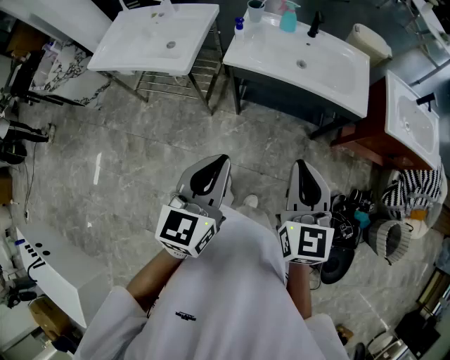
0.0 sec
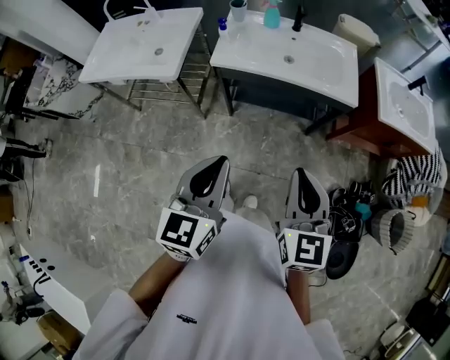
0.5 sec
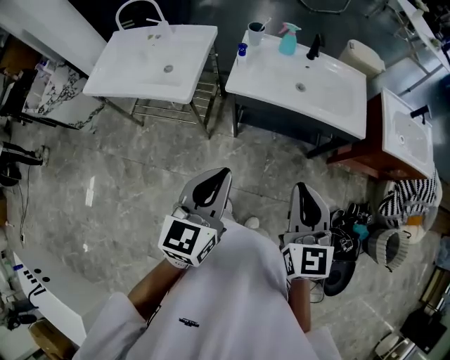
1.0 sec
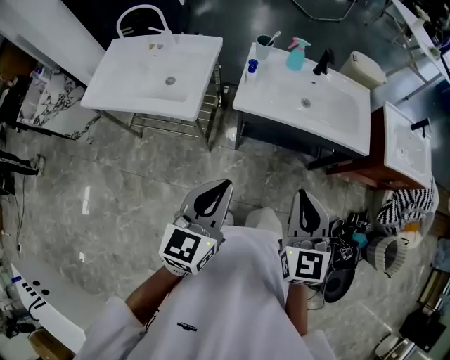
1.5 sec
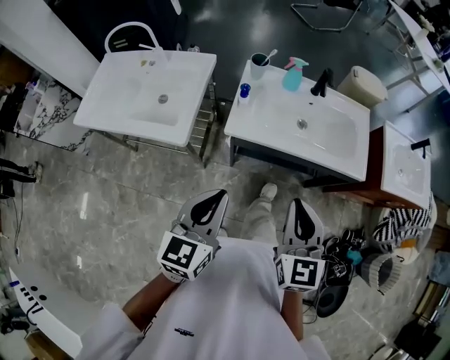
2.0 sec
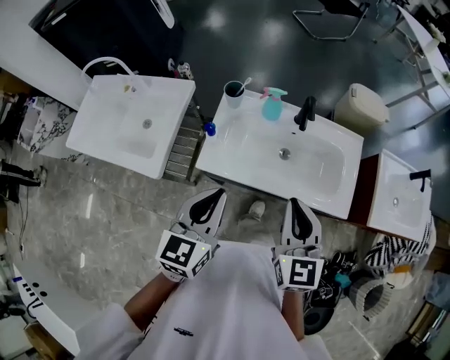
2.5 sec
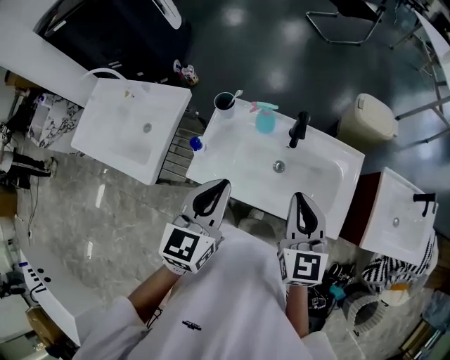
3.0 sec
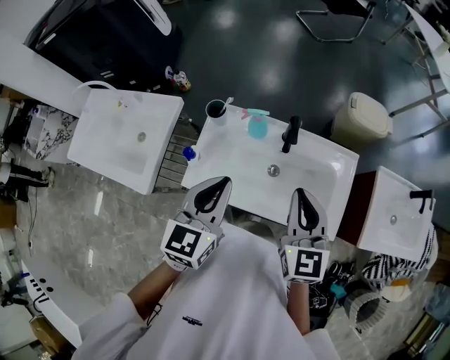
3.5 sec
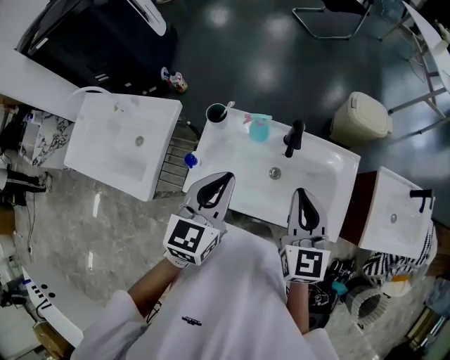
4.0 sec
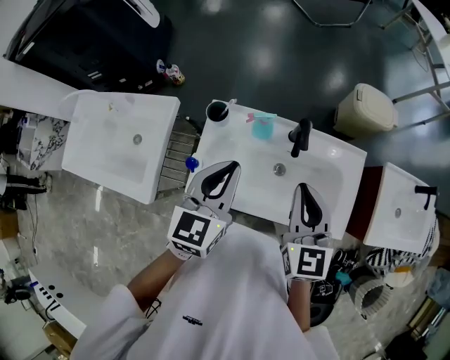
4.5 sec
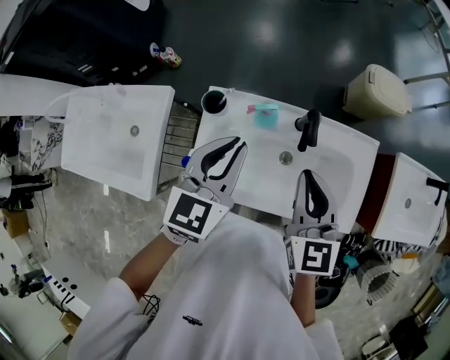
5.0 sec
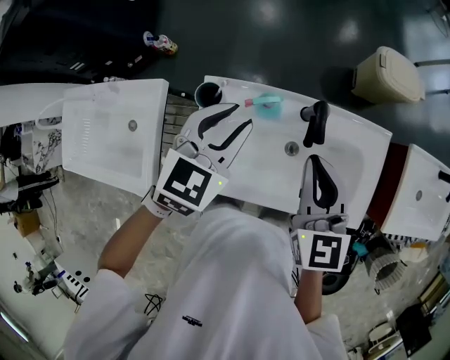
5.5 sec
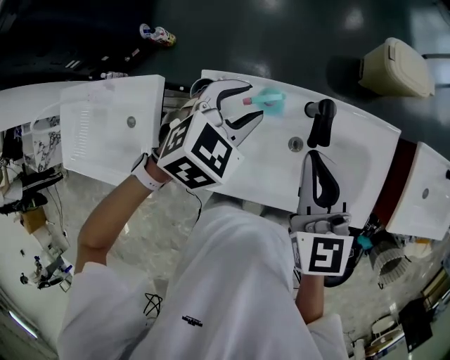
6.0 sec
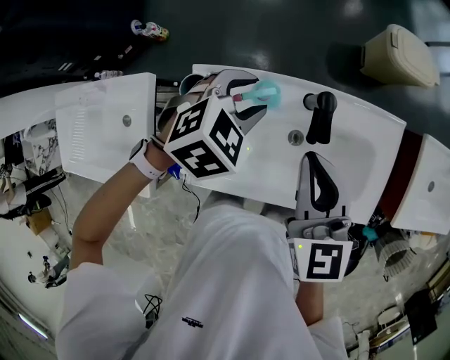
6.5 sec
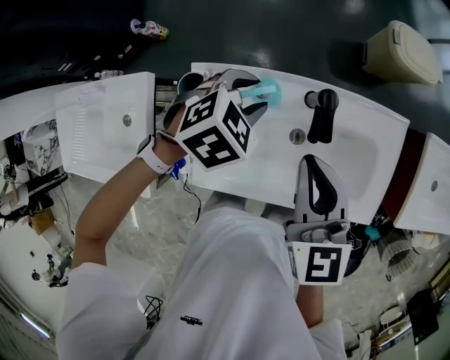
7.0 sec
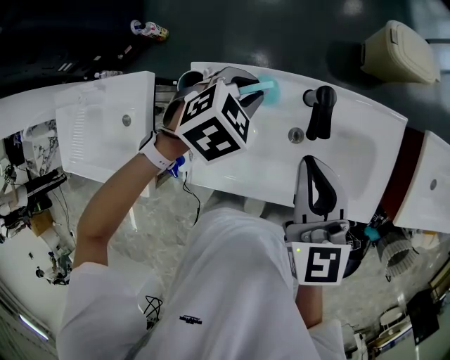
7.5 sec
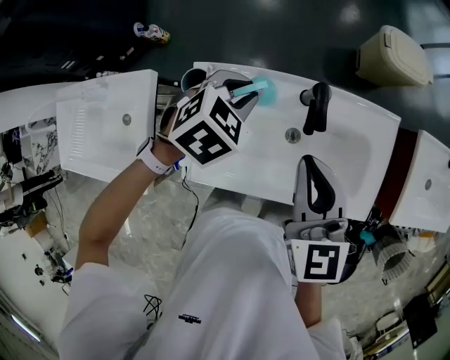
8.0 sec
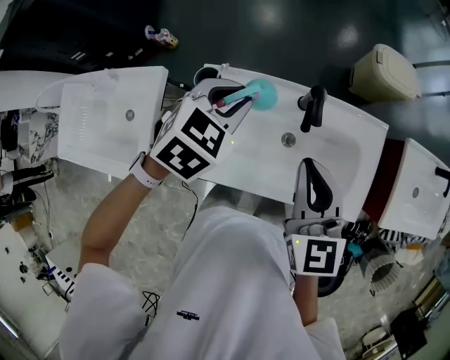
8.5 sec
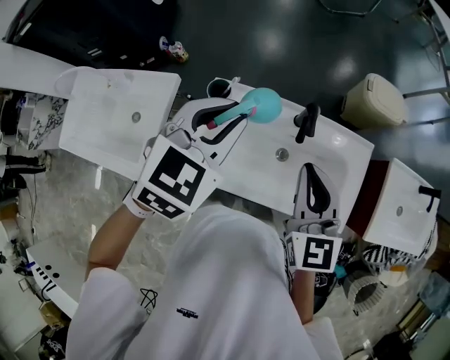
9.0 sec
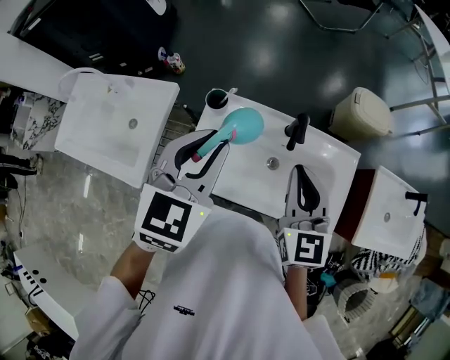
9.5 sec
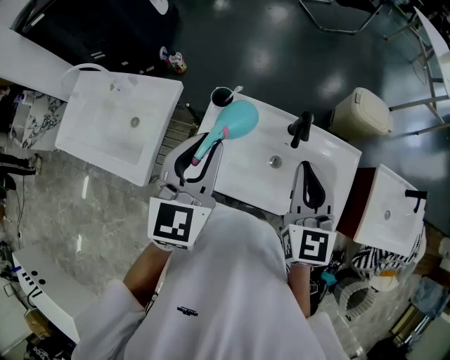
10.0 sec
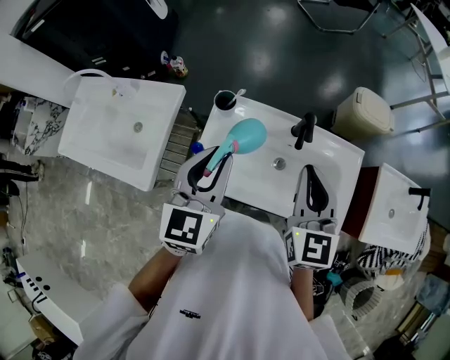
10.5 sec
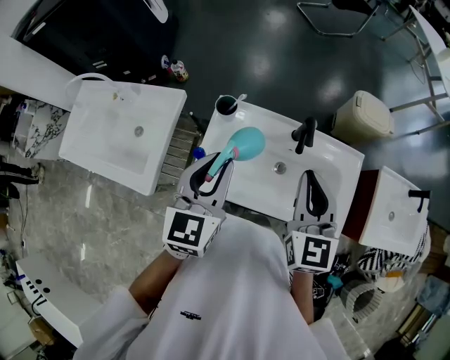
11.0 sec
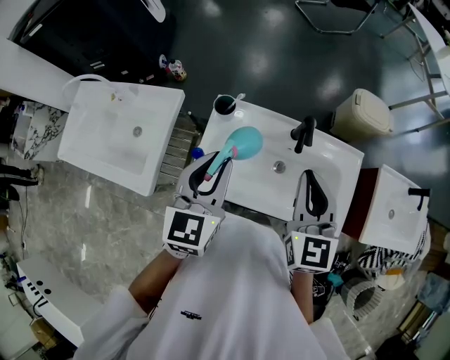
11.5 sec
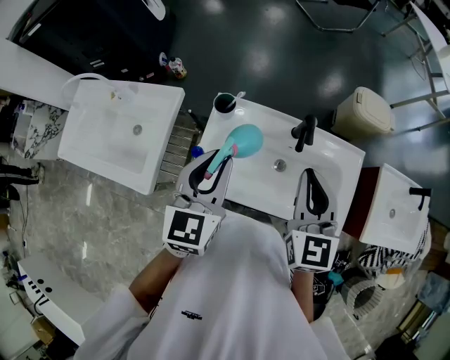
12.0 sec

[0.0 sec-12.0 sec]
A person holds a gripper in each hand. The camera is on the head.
0.0 sec to 2.0 sec: The two grippers go approximately 20 cm forward and to the left.
2.0 sec to 4.0 sec: Both grippers move forward and to the right, about 35 cm.
4.0 sec to 6.0 sec: The left gripper shifts about 25 cm forward and downward, tilts its fingers about 30 degrees downward, and opens up. Meanwhile the right gripper shifts about 15 cm forward, downward and to the left.
6.0 sec to 8.0 sec: The left gripper closes up.
8.0 sec to 10.0 sec: The left gripper heads upward and backward, covering some 30 cm, and tilts its fingers some 40 degrees upward. Meanwhile the right gripper moves upward and backward, roughly 10 cm.
10.0 sec to 12.0 sec: The grippers stay close to where they were, moving slightly.

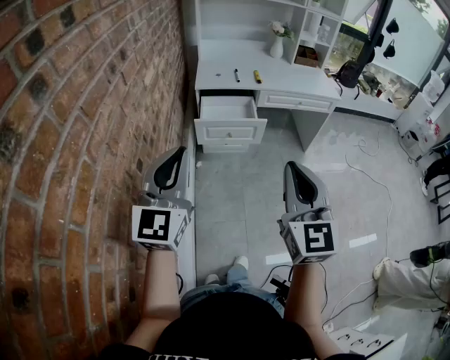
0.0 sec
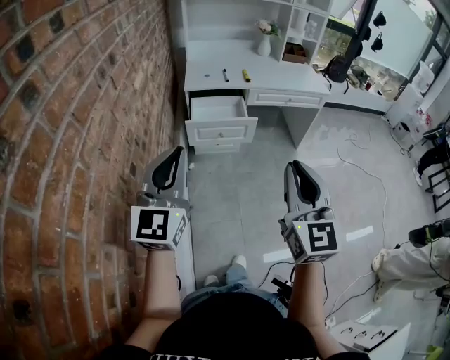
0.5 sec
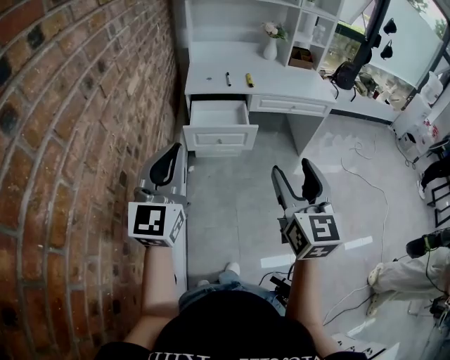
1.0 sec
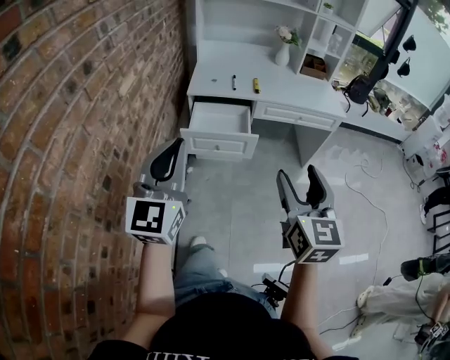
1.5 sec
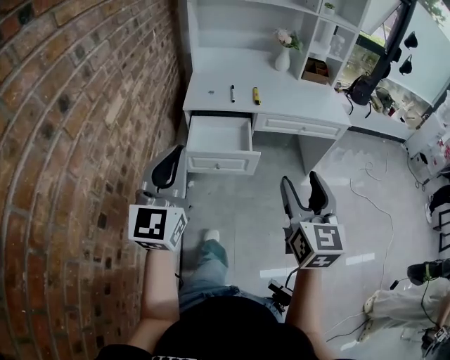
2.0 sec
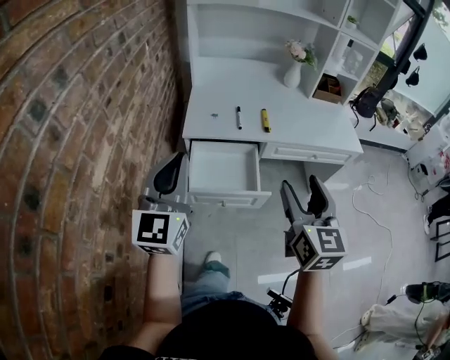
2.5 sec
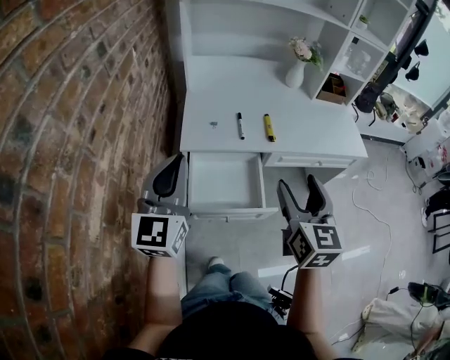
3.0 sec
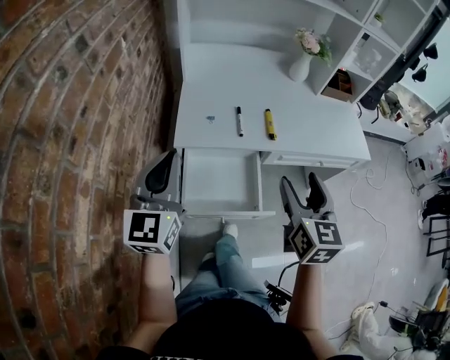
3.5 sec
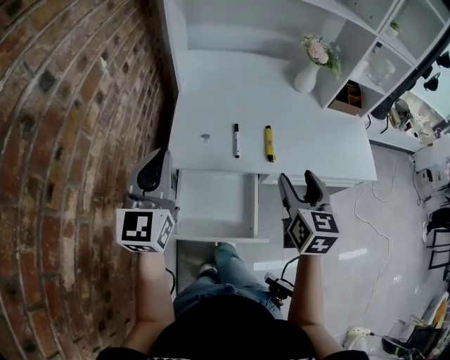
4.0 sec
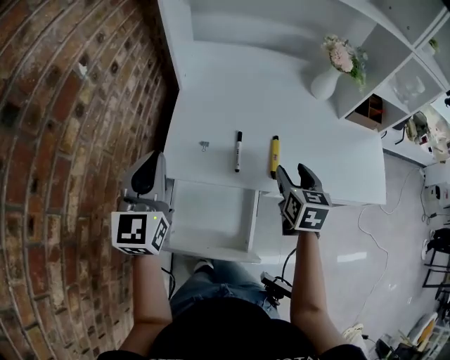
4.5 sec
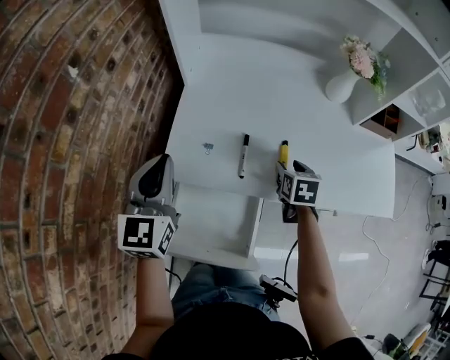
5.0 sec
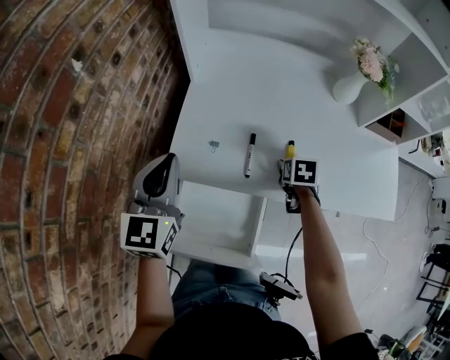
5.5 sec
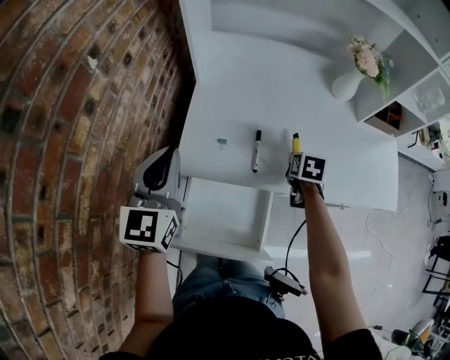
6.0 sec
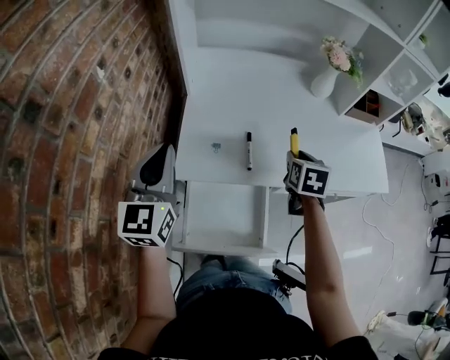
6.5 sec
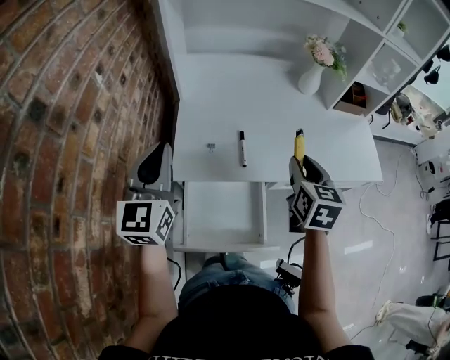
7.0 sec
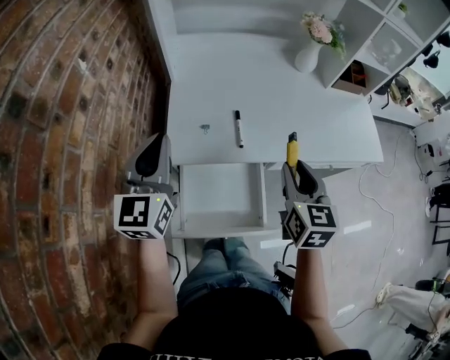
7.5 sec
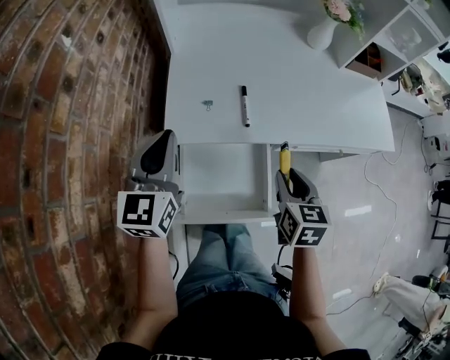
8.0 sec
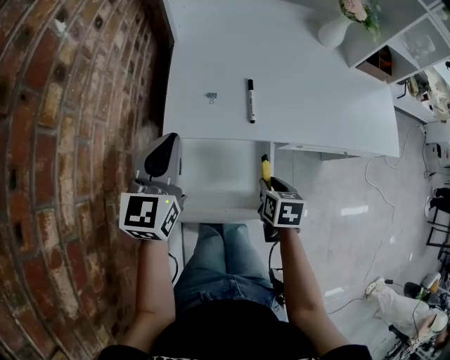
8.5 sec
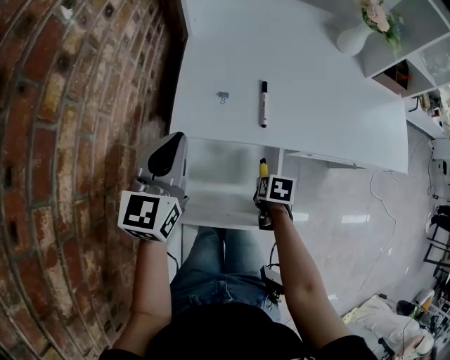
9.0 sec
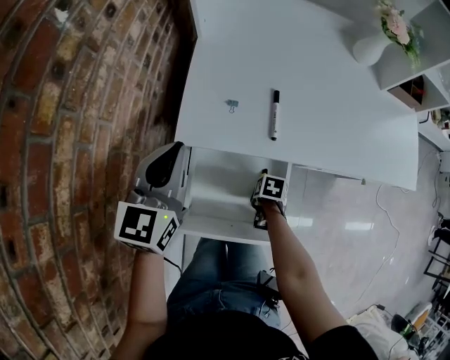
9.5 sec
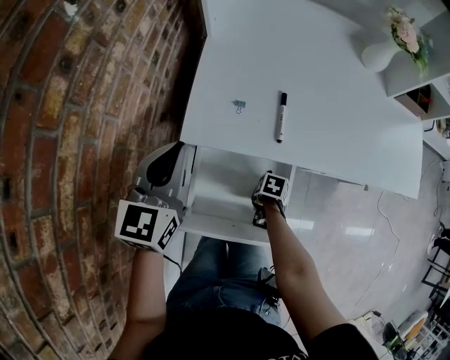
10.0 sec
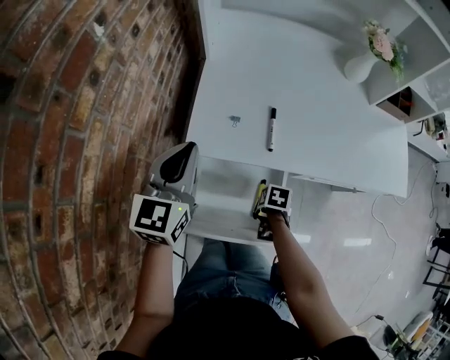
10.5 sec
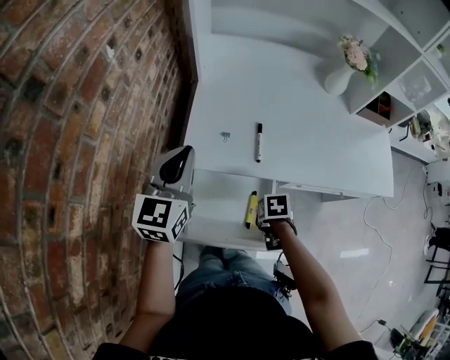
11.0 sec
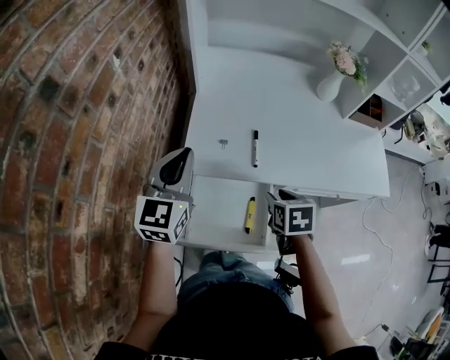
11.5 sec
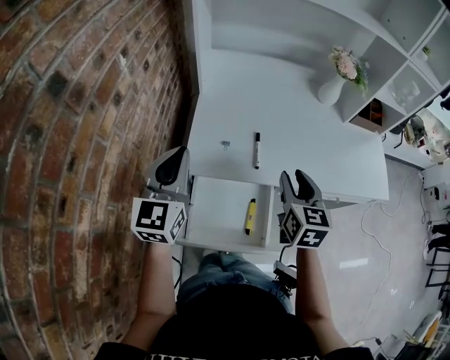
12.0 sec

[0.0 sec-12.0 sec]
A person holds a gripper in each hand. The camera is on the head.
0.0 sec to 2.0 sec: The right gripper moves forward and to the right, roughly 25 cm, and opens up. The left gripper goes some 20 cm forward.
2.0 sec to 4.0 sec: Both grippers are carried forward, some 50 cm.
4.0 sec to 6.0 sec: The right gripper heads downward and forward, covering approximately 30 cm, angles its fingers downward, by some 40 degrees, and closes its fingers. The left gripper shifts some 10 cm forward.
6.0 sec to 8.0 sec: The right gripper shifts approximately 25 cm backward. Meanwhile the left gripper ends up approximately 5 cm from where it was.
8.0 sec to 10.0 sec: The left gripper travels downward by roughly 5 cm; the right gripper travels downward by about 35 cm, and points its fingers roughly 50 degrees further downward.
10.0 sec to 12.0 sec: The left gripper goes approximately 10 cm upward; the right gripper travels upward by about 40 cm, and angles its fingers upward, by some 60 degrees.

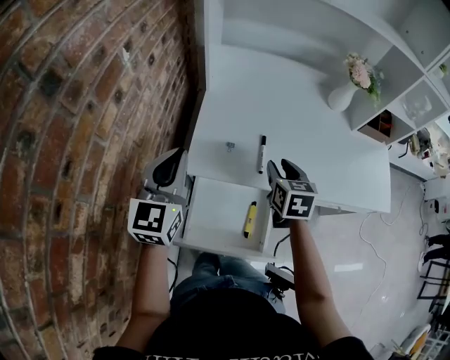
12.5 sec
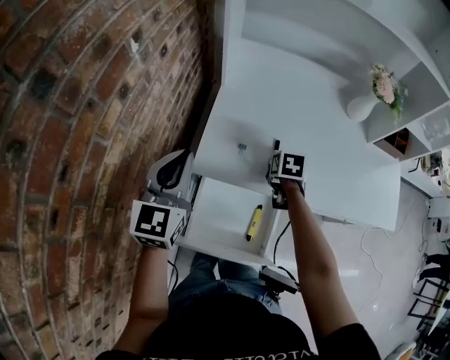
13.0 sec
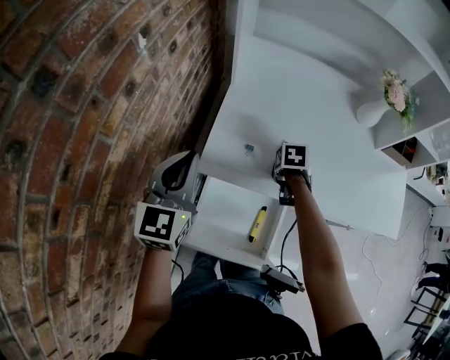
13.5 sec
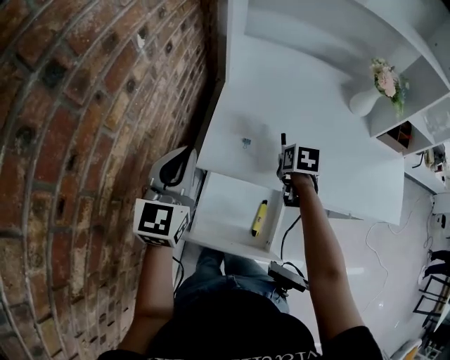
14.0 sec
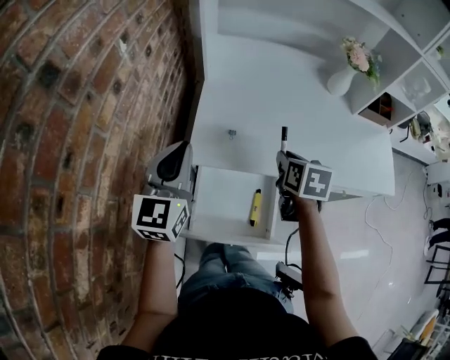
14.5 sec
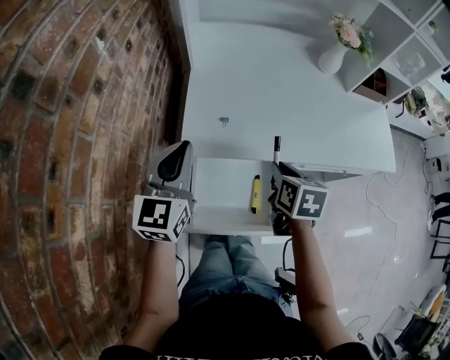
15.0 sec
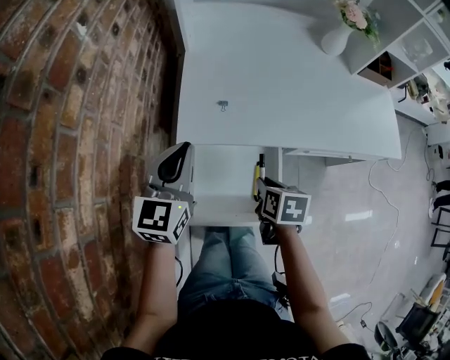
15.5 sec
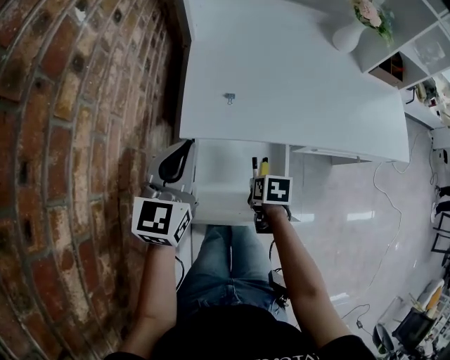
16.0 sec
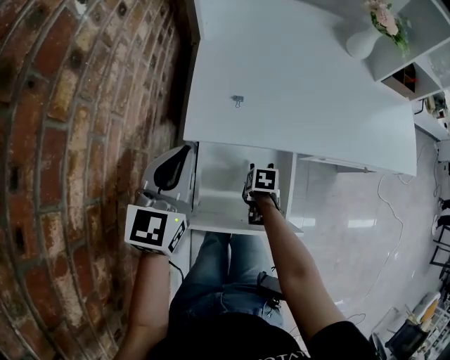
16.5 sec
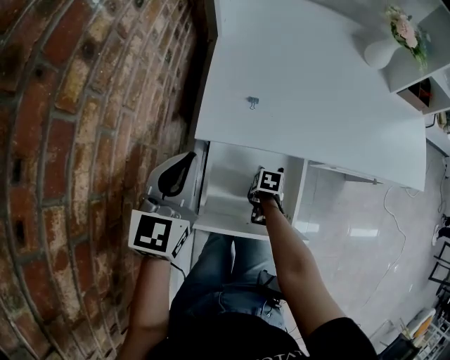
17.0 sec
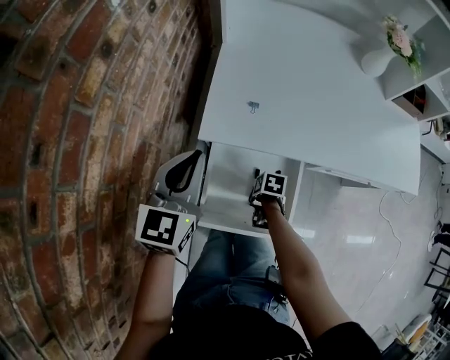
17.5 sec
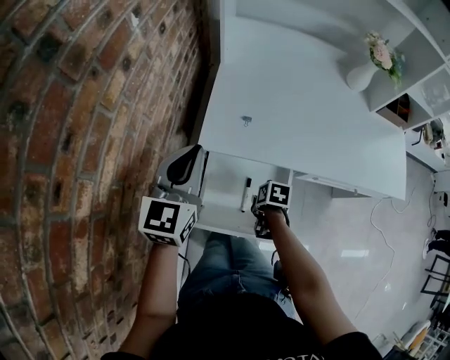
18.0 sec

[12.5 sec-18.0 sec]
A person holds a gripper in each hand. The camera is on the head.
12.5 sec to 14.5 sec: The right gripper travels downward and back again, roughly 15 cm each way.
14.5 sec to 16.0 sec: The left gripper is displaced downward by about 10 cm, while the right gripper is displaced downward and backward by some 25 cm, and swivels about 30 degrees.
16.0 sec to 18.0 sec: The right gripper goes downward and returns, approximately 15 cm each way. The left gripper is displaced upward by about 5 cm.
